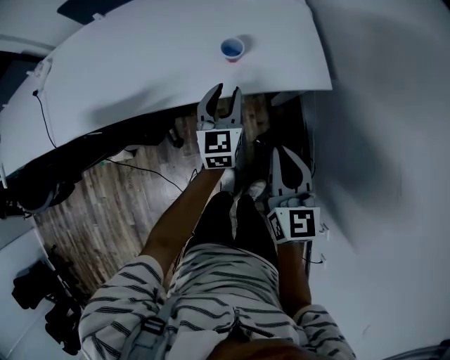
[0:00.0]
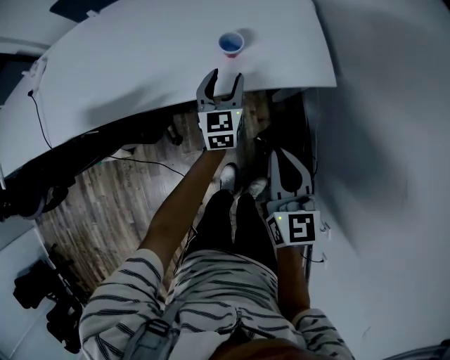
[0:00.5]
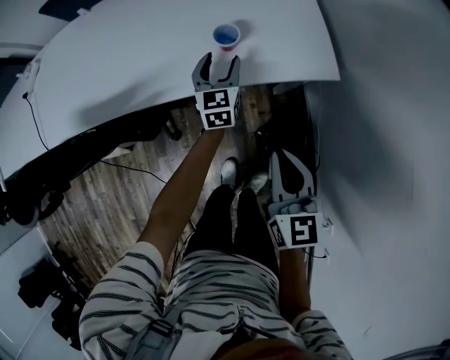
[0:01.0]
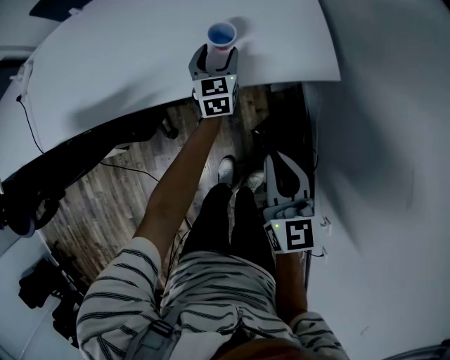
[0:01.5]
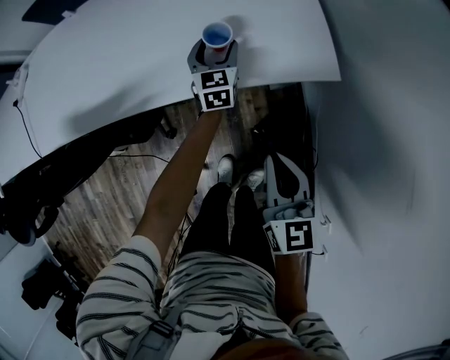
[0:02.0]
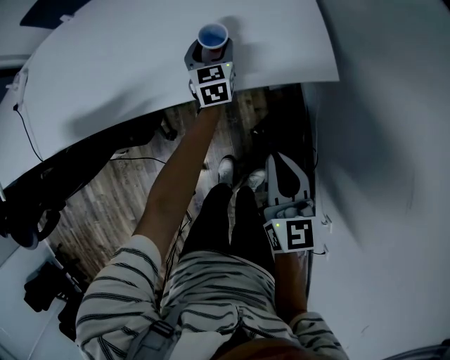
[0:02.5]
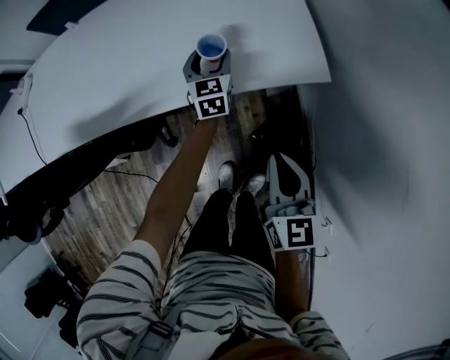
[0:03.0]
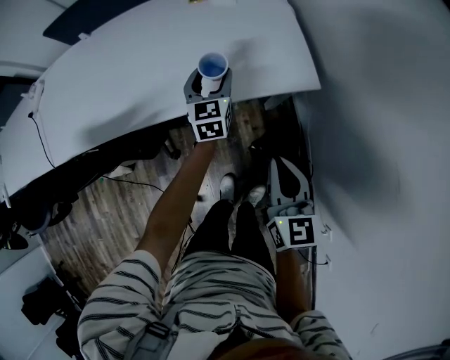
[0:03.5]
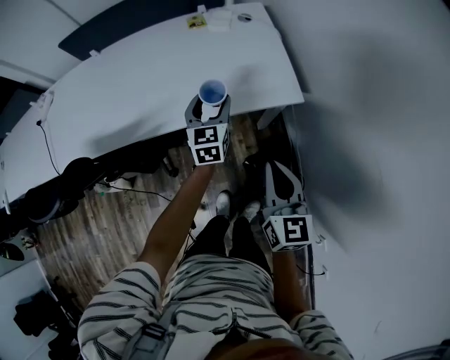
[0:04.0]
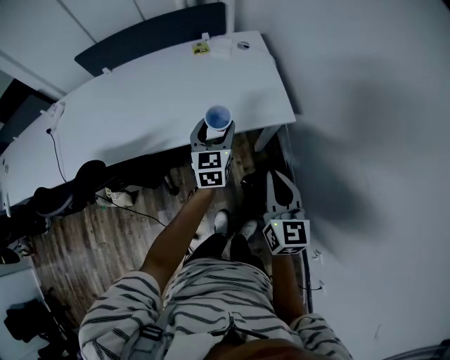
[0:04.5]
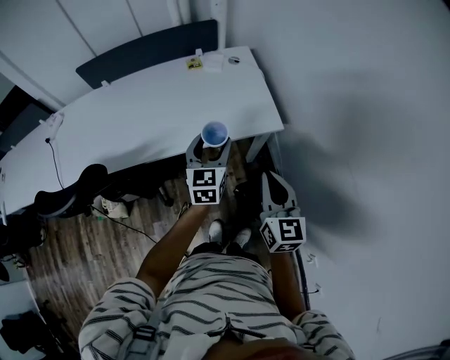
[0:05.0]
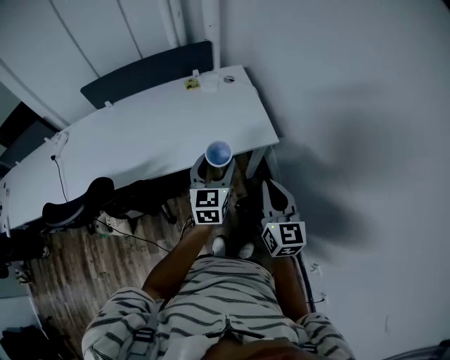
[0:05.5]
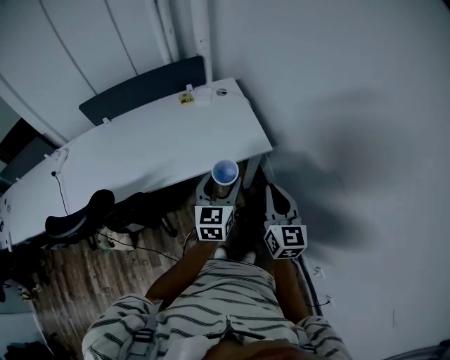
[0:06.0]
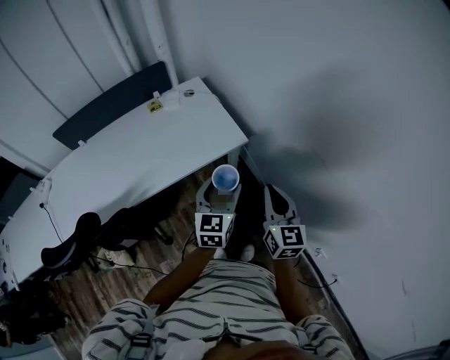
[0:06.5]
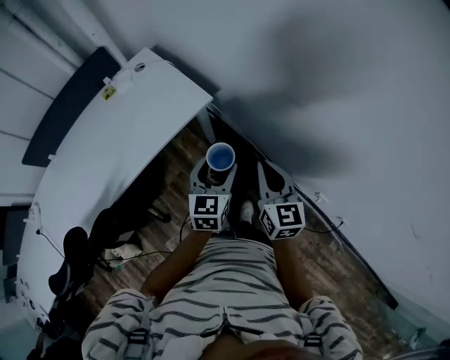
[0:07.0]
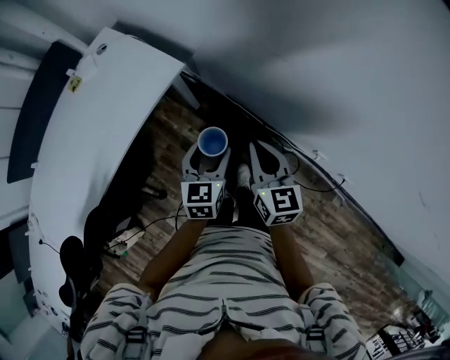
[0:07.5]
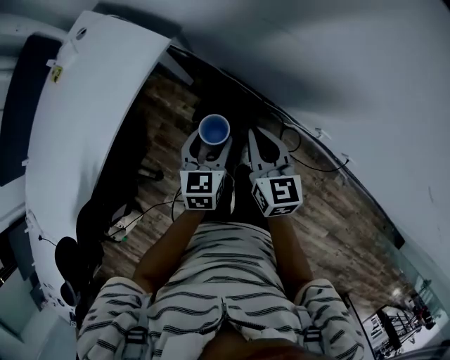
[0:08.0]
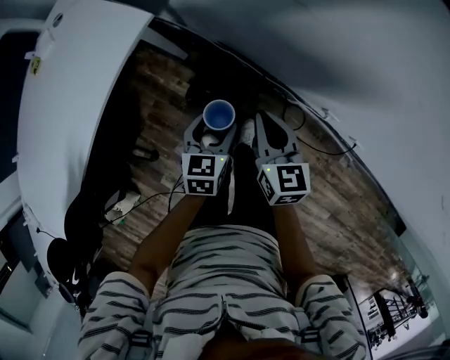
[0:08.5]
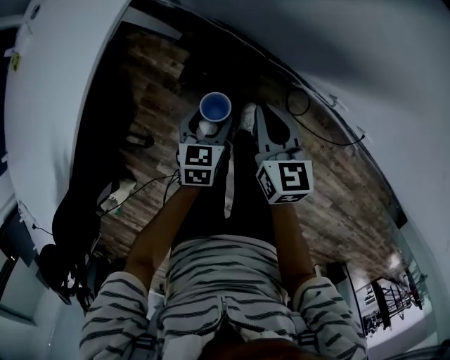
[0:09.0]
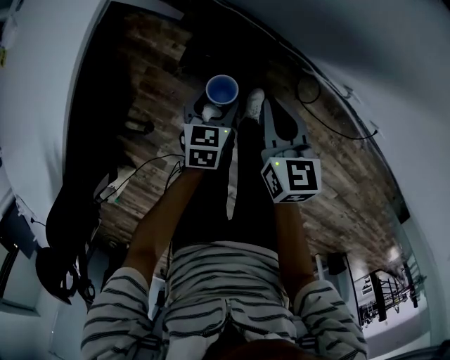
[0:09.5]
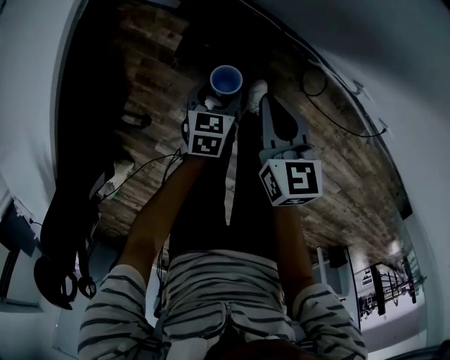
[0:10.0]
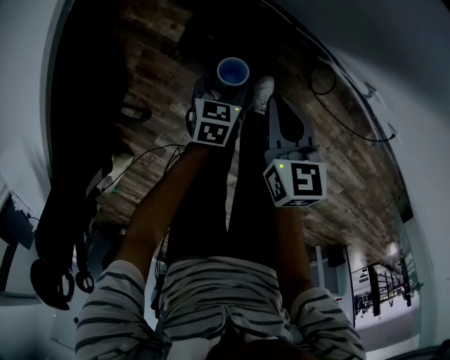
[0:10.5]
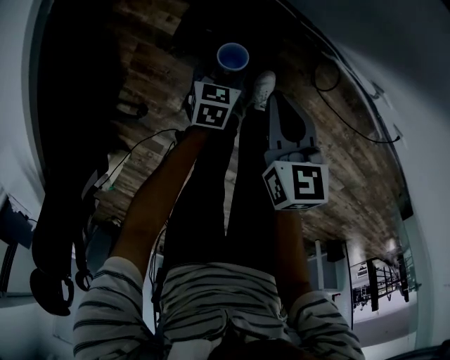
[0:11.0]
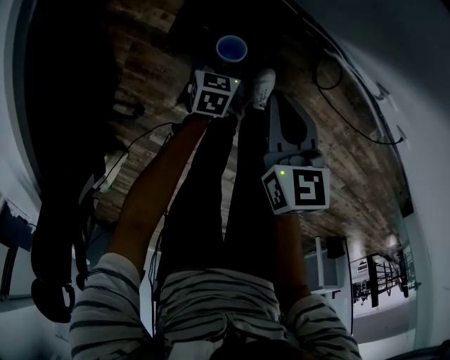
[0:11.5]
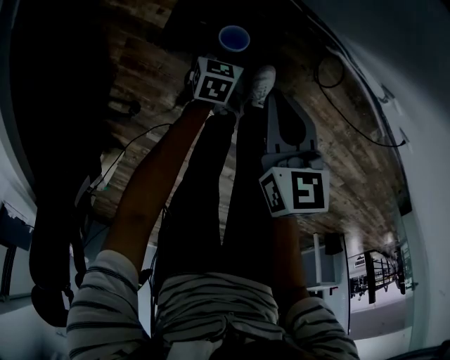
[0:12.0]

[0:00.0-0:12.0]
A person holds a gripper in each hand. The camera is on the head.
0:00.0 to 0:02.0: The right gripper shifts about 5 cm downward, while the left gripper is displaced forward and downward by about 20 cm, and opens its fingers.
0:02.0 to 0:04.0: The right gripper goes about 10 cm upward. Meanwhile the left gripper travels upward and backward by about 20 cm.
0:04.0 to 0:06.0: The left gripper travels backward, upward and to the right by some 25 cm. Meanwhile the right gripper is displaced upward and to the right by roughly 10 cm.
0:06.0 to 0:08.0: The right gripper is displaced downward by some 15 cm, and rotates about 30 degrees; the left gripper changes place by about 30 cm, and changes its angle by roughly 40 degrees.
0:08.0 to 0:10.0: Both grippers move downward, some 30 cm. The left gripper swivels about 20 degrees.
0:10.0 to 0:12.0: The right gripper goes roughly 15 cm downward. Meanwhile the left gripper heads downward, covering roughly 20 cm.

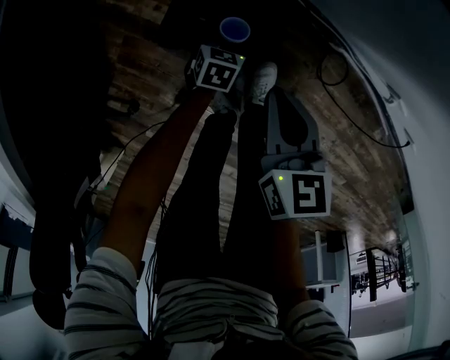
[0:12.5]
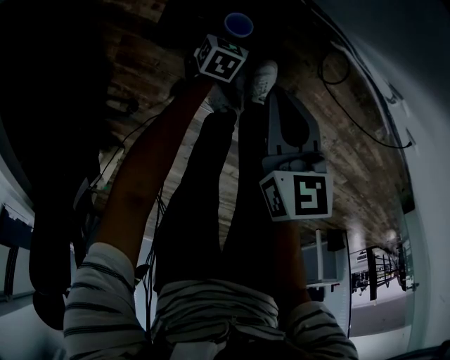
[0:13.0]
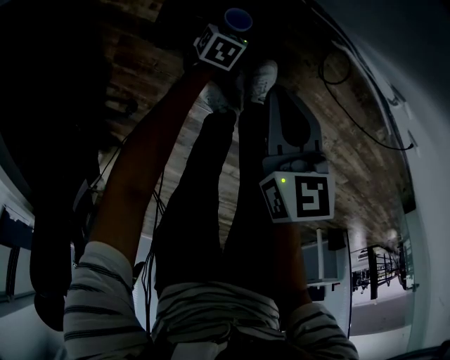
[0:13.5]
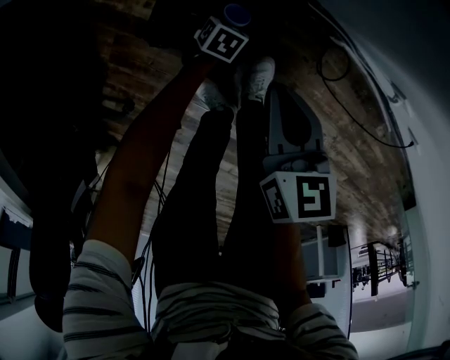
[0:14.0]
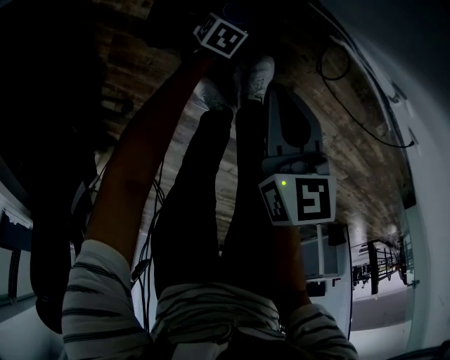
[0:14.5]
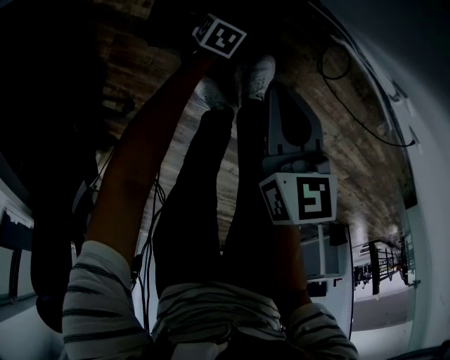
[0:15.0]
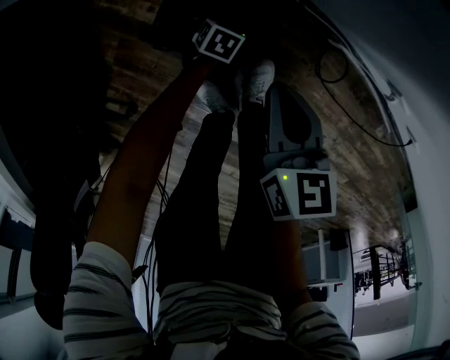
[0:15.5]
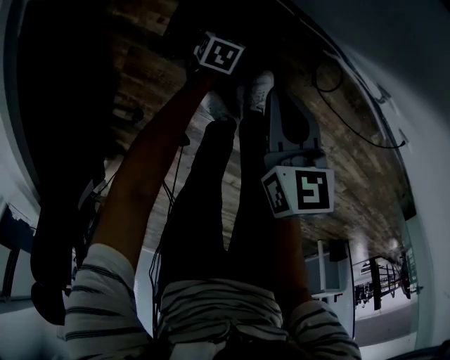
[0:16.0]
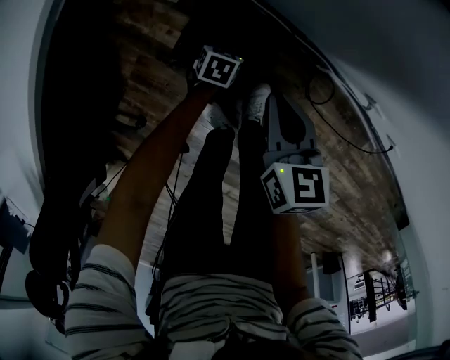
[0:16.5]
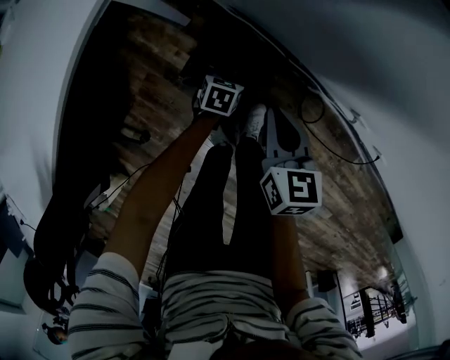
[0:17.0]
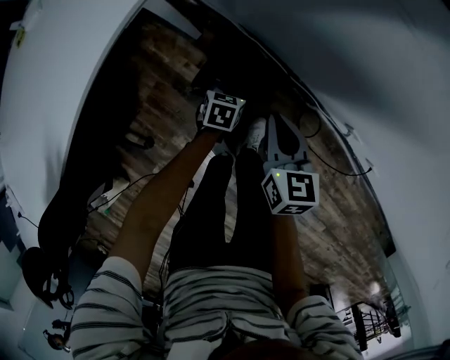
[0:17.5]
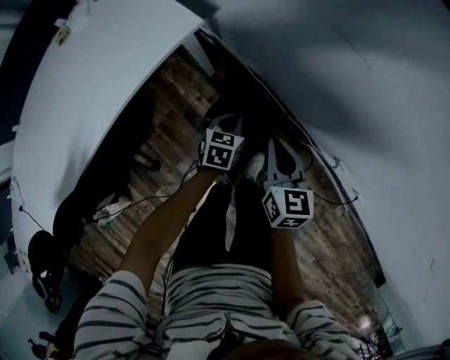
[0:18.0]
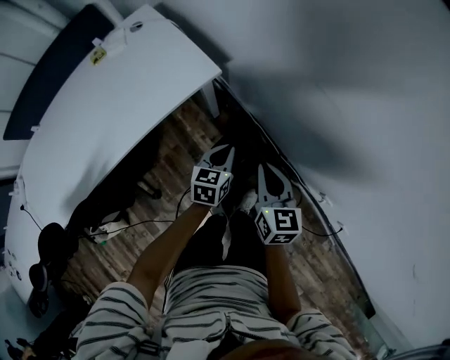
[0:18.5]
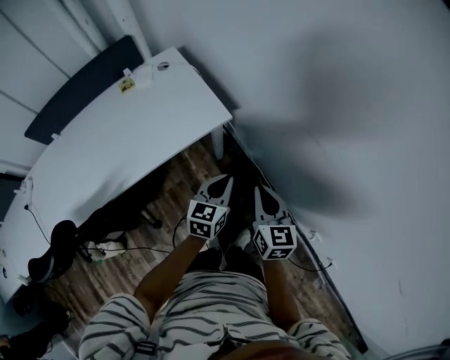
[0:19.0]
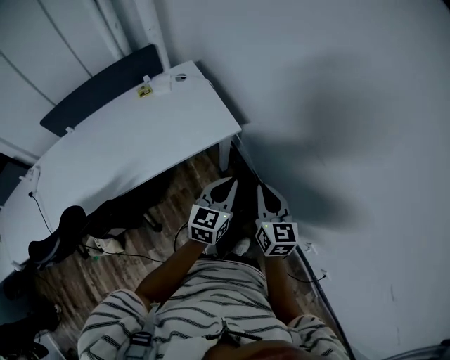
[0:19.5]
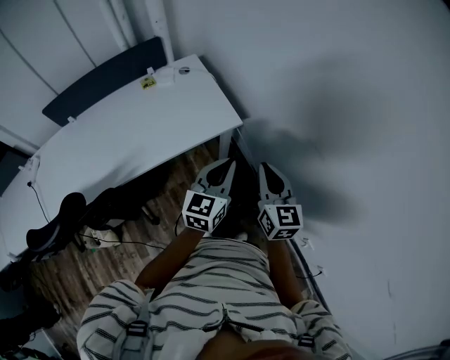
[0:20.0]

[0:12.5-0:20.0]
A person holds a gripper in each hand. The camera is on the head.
0:12.5 to 0:14.5: The left gripper is displaced downward by about 10 cm.
0:14.5 to 0:16.5: The grippers both shift upward by approximately 15 cm. The left gripper closes.
0:16.5 to 0:18.0: The right gripper goes roughly 15 cm upward; the left gripper is displaced upward by roughly 30 cm, turns by about 30 degrees, and closes.
0:18.0 to 0:20.0: The right gripper heads upward, covering some 30 cm, and rotates some 30 degrees; the left gripper shifts some 40 cm upward, and tips its fingers upward by some 40 degrees.

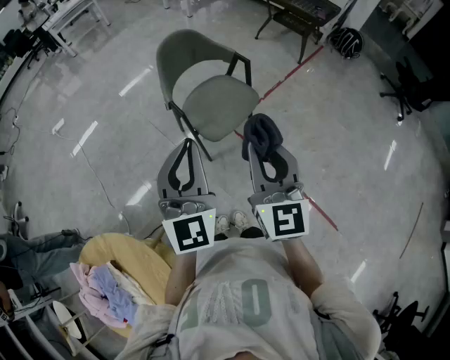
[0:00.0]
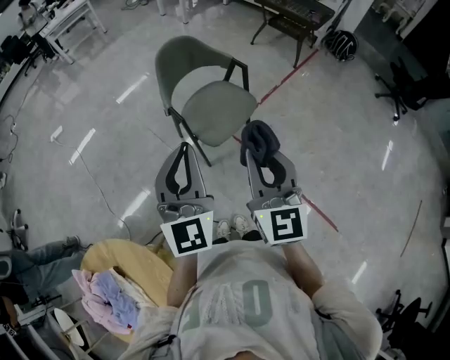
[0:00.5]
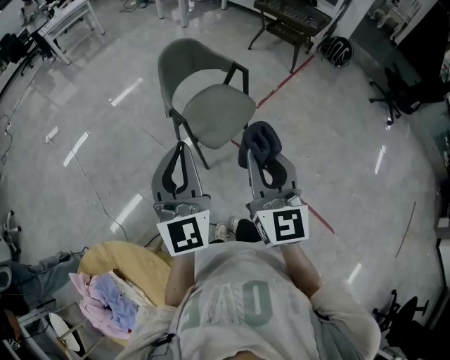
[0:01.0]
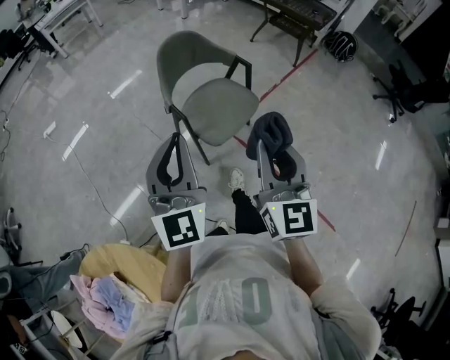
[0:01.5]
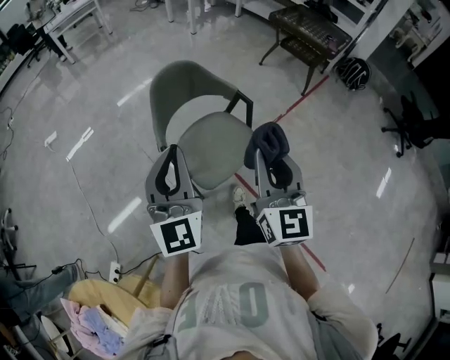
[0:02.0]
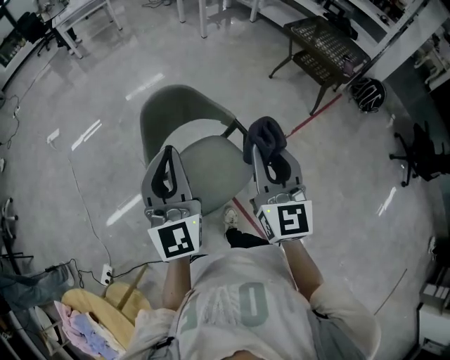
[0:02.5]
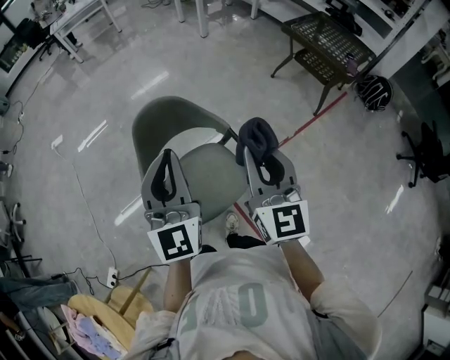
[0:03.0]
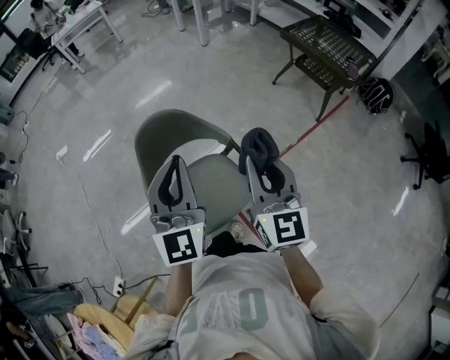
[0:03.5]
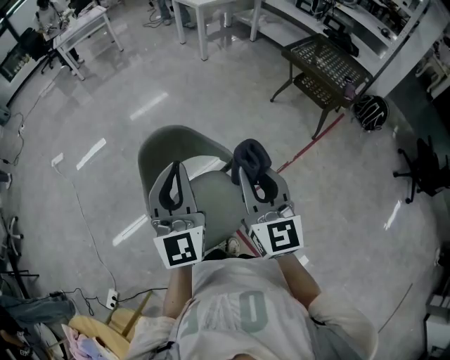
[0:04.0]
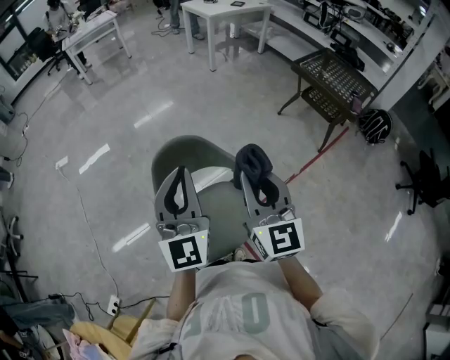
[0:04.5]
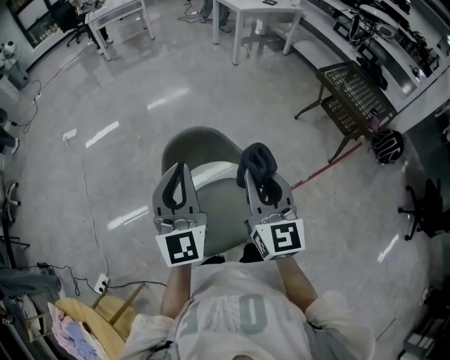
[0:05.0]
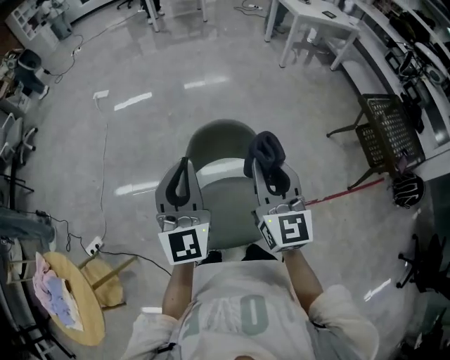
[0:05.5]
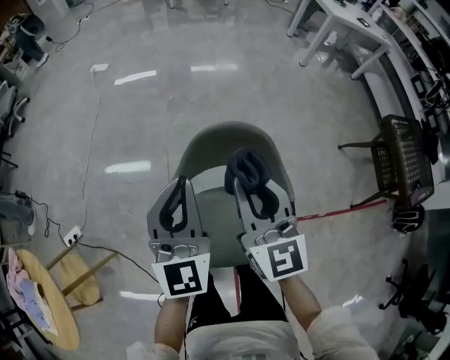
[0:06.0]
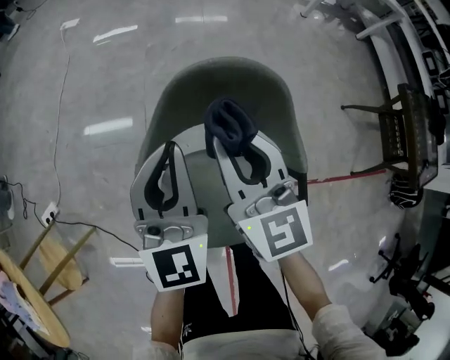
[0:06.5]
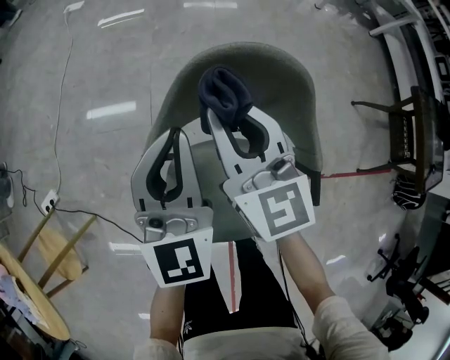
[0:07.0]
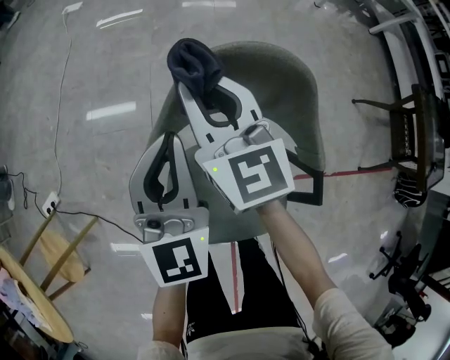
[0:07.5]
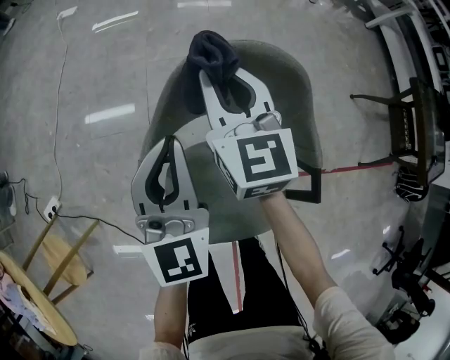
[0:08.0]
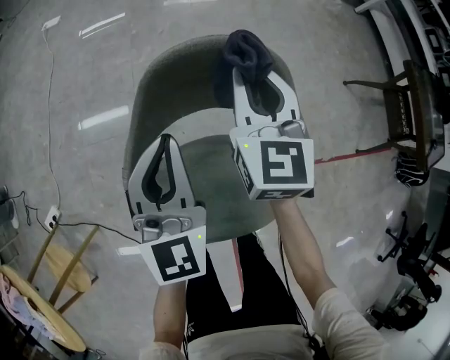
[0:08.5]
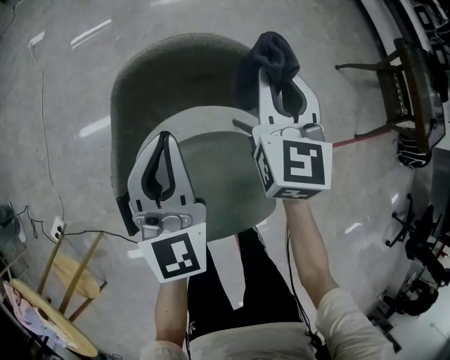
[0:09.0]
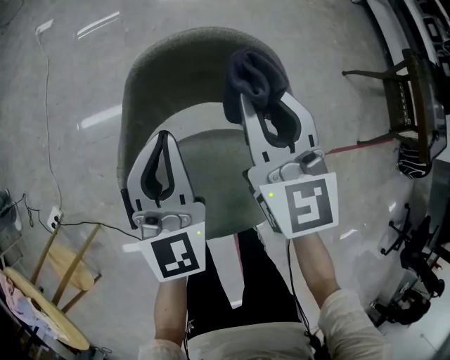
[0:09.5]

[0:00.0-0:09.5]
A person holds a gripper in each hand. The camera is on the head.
0:00.0 to 0:02.0: The two grippers go some 20 cm forward.
0:02.0 to 0:04.0: The right gripper goes approximately 25 cm forward. The left gripper heads forward and to the right, covering roughly 30 cm.
0:04.0 to 0:05.5: The left gripper heads to the left, covering some 10 cm, and changes its angle by approximately 20 degrees; the right gripper shifts about 15 cm forward and to the left, and turns by about 20 degrees.
0:05.5 to 0:07.5: The left gripper moves downward, some 30 cm. Meanwhile the right gripper heads downward, forward and to the left, covering roughly 40 cm, and rotates approximately 20 degrees.
0:07.5 to 0:09.5: The left gripper goes roughly 5 cm to the right. Meanwhile the right gripper goes about 15 cm to the right.
